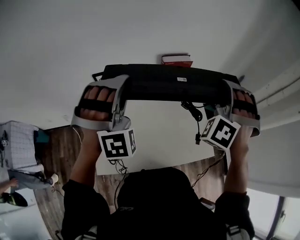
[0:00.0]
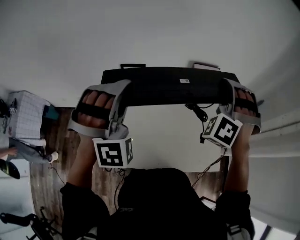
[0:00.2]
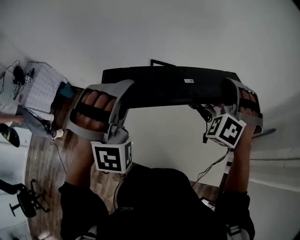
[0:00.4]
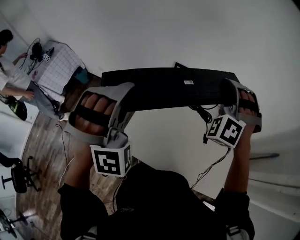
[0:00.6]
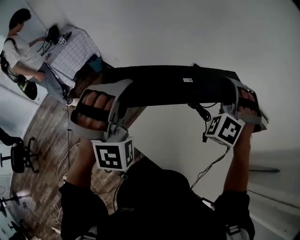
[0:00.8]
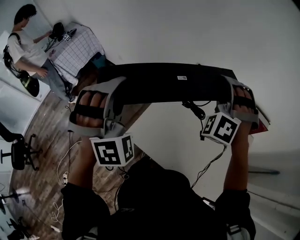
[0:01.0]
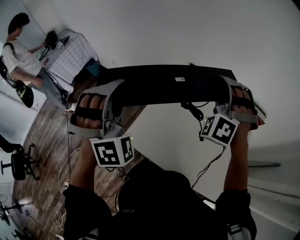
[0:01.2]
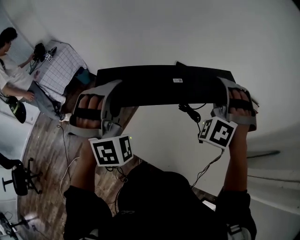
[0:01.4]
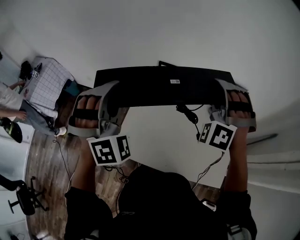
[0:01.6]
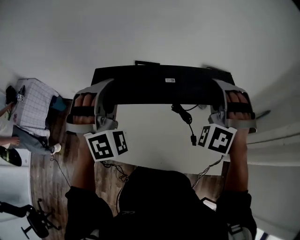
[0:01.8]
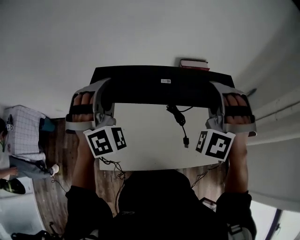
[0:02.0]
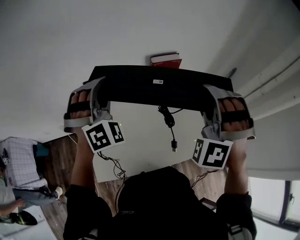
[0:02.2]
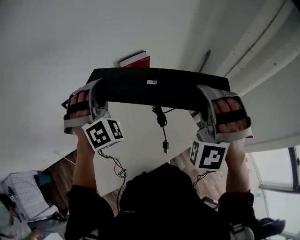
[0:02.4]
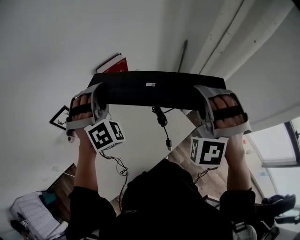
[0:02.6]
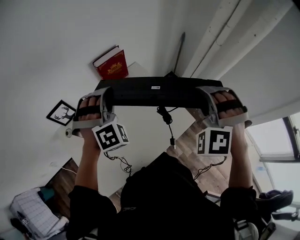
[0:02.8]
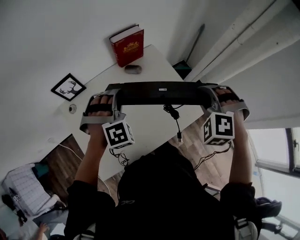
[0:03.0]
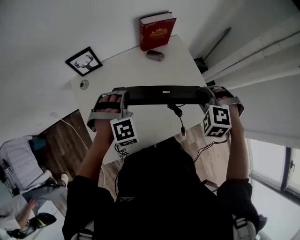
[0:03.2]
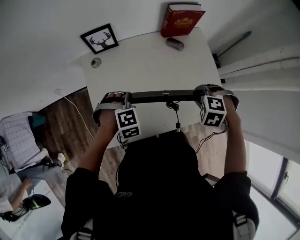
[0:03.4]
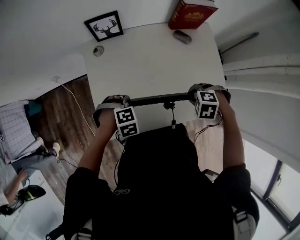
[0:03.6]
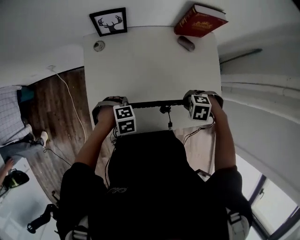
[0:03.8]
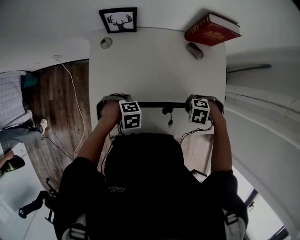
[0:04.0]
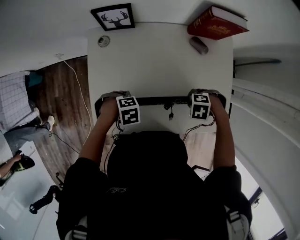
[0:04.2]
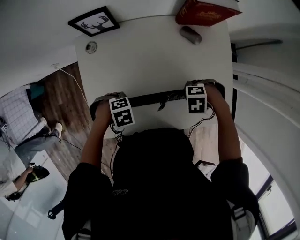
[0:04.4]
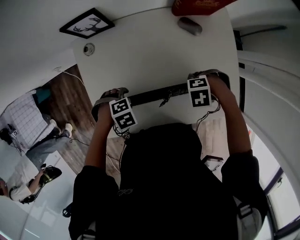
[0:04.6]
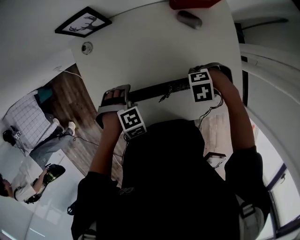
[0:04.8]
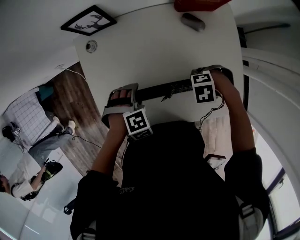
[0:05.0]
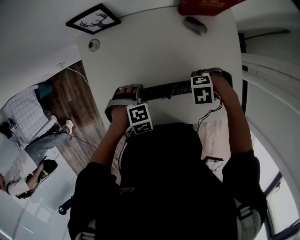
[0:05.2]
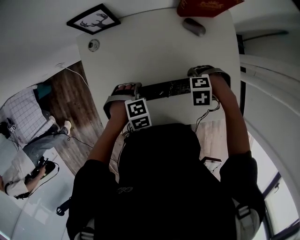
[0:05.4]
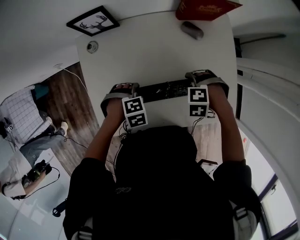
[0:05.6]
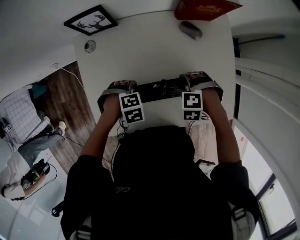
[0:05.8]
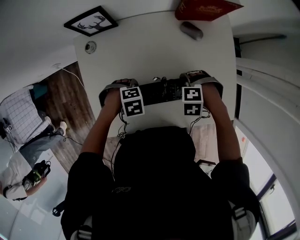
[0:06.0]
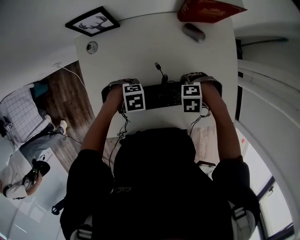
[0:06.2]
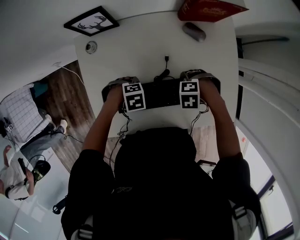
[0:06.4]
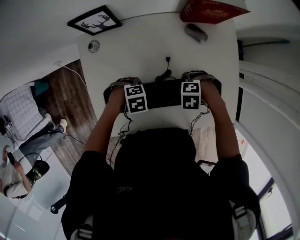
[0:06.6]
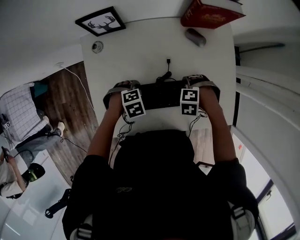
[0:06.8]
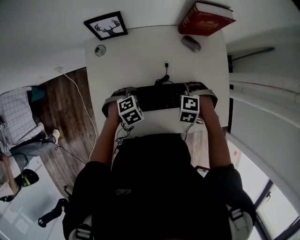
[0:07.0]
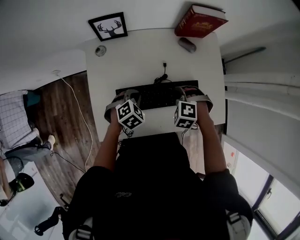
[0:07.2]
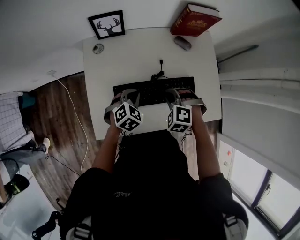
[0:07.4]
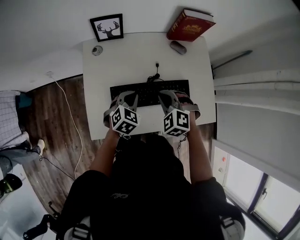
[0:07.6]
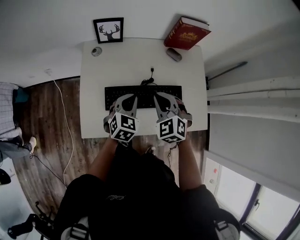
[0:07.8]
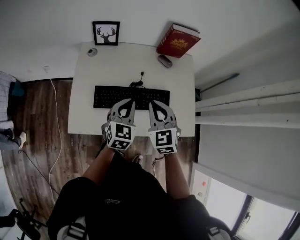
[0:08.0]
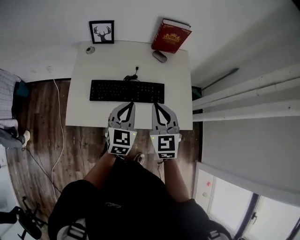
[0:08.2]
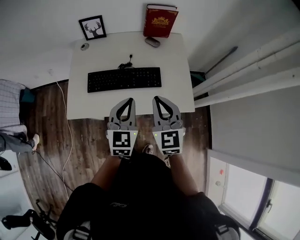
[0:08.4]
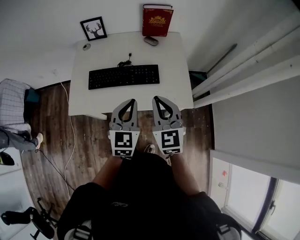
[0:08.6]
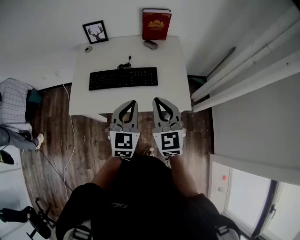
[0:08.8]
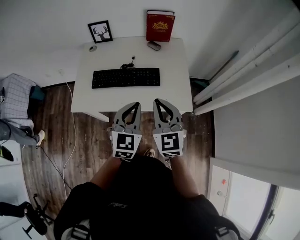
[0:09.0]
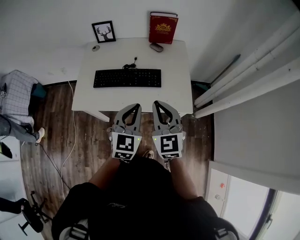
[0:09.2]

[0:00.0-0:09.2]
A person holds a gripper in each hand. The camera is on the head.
0:00.0 to 0:01.6: The left gripper changes place by about 25 cm, and swivels approximately 30 degrees. Meanwhile the right gripper ends up about 25 cm from where it was, and swivels some 40 degrees.
0:01.6 to 0:03.0: The left gripper ends up about 35 cm from where it was, and changes its angle by roughly 60 degrees. The right gripper changes place by roughly 35 cm, and tilts its fingers about 40 degrees downward.
0:03.0 to 0:04.6: Both grippers travel together downward, roughly 30 cm. The left gripper points its fingers roughly 40 degrees further downward, and opens its fingers; the right gripper changes its angle by roughly 70 degrees.
0:04.6 to 0:06.2: The left gripper changes place by about 5 cm. Meanwhile the right gripper opens up.
0:06.2 to 0:07.6: Both grippers travel together upward, about 15 cm. The right gripper rotates roughly 50 degrees, and closes, while the left gripper turns by approximately 70 degrees, and closes up.
0:07.6 to 0:09.2: Both grippers move backward, to the right and upward, roughly 35 cm. The right gripper tips its fingers upward by about 40 degrees. Meanwhile the left gripper changes its angle by approximately 30 degrees.

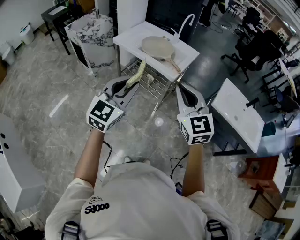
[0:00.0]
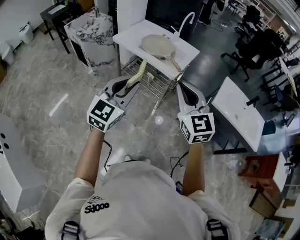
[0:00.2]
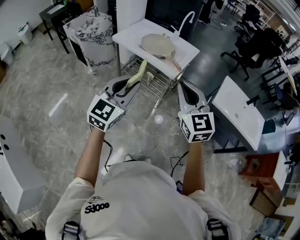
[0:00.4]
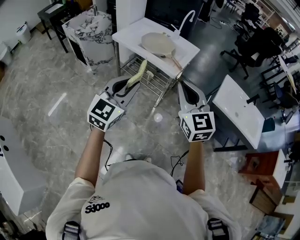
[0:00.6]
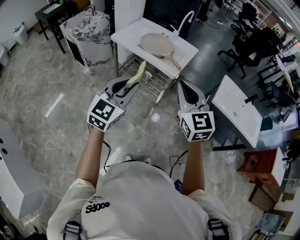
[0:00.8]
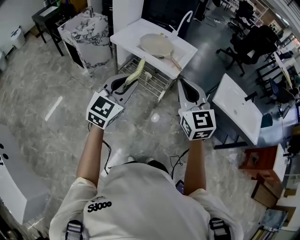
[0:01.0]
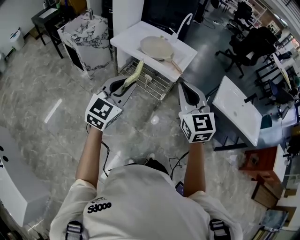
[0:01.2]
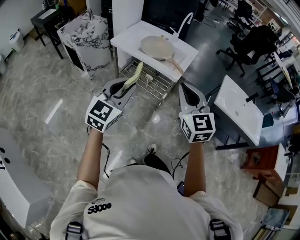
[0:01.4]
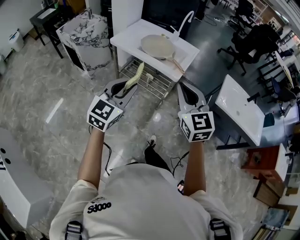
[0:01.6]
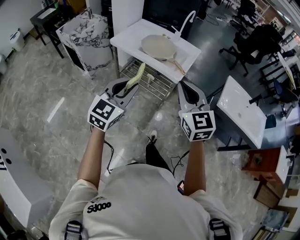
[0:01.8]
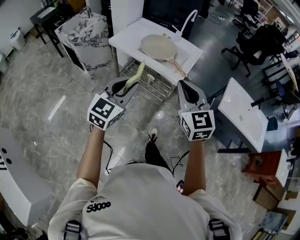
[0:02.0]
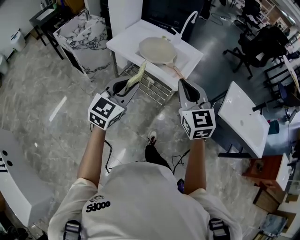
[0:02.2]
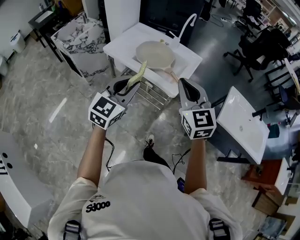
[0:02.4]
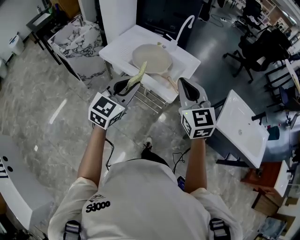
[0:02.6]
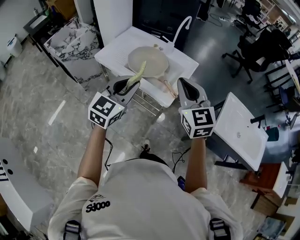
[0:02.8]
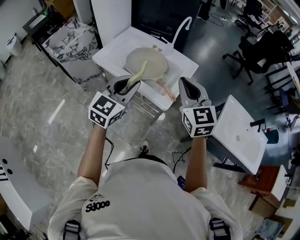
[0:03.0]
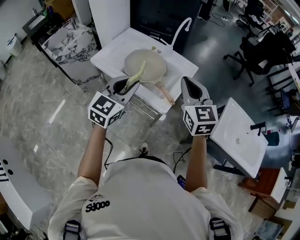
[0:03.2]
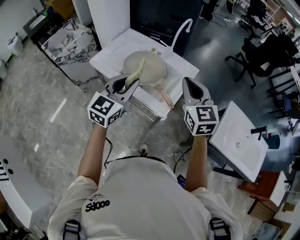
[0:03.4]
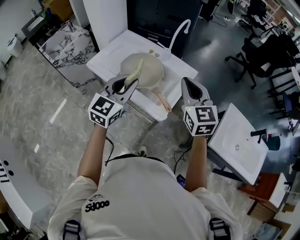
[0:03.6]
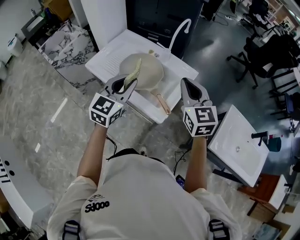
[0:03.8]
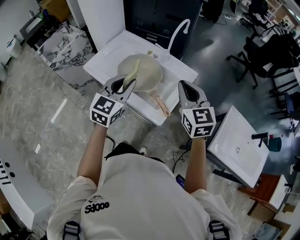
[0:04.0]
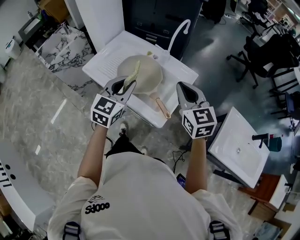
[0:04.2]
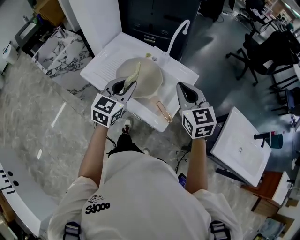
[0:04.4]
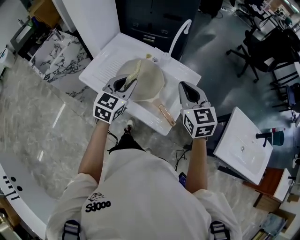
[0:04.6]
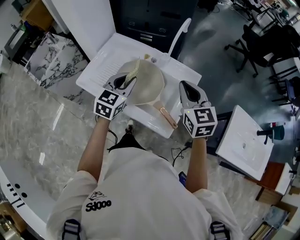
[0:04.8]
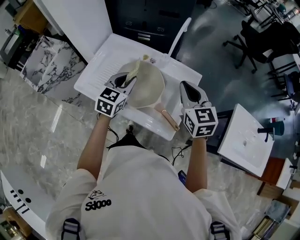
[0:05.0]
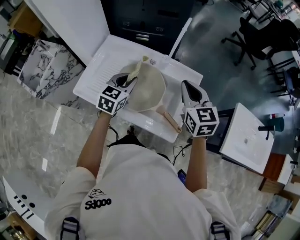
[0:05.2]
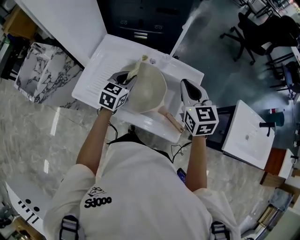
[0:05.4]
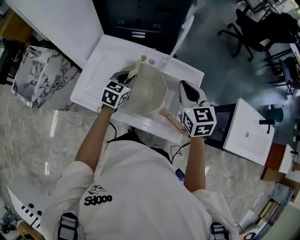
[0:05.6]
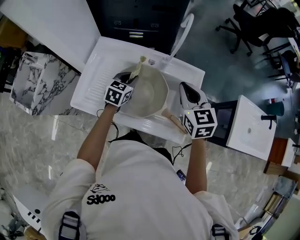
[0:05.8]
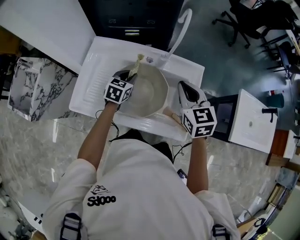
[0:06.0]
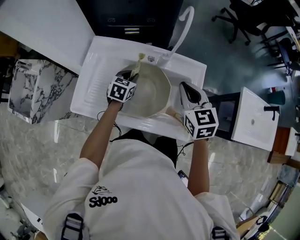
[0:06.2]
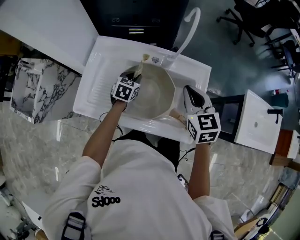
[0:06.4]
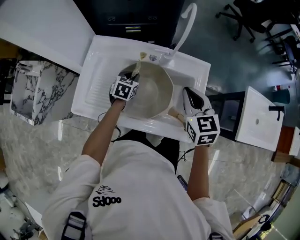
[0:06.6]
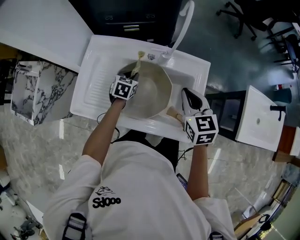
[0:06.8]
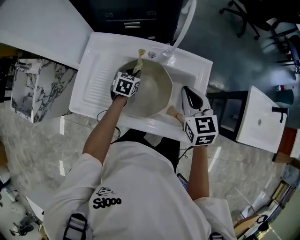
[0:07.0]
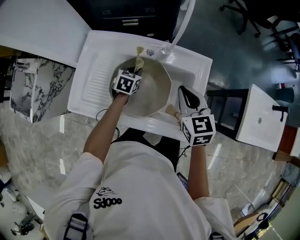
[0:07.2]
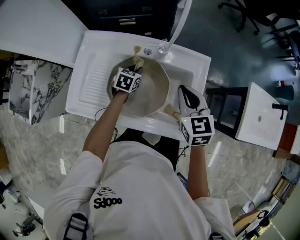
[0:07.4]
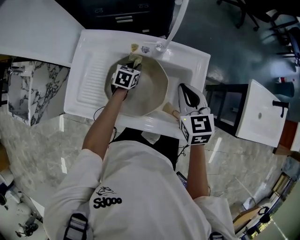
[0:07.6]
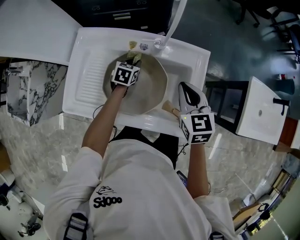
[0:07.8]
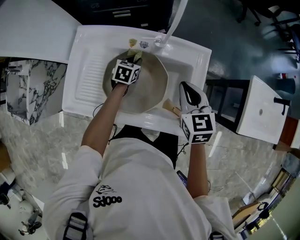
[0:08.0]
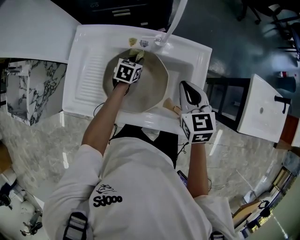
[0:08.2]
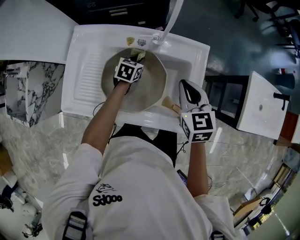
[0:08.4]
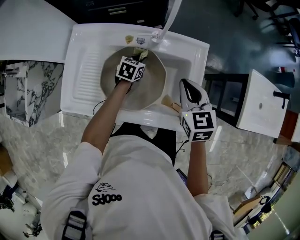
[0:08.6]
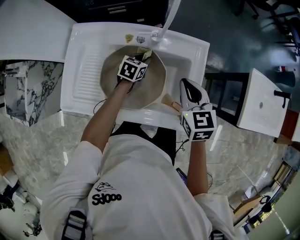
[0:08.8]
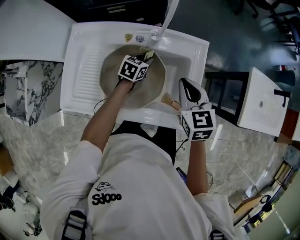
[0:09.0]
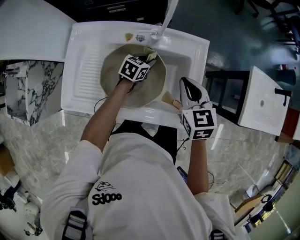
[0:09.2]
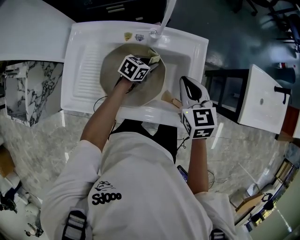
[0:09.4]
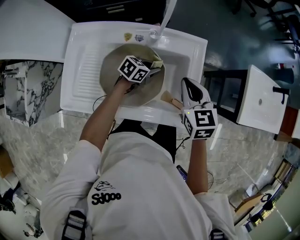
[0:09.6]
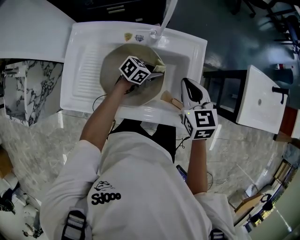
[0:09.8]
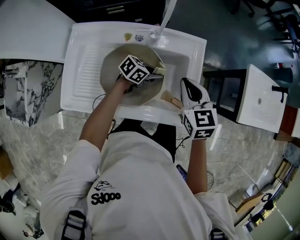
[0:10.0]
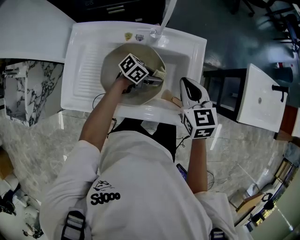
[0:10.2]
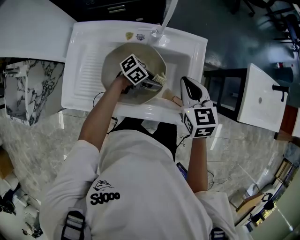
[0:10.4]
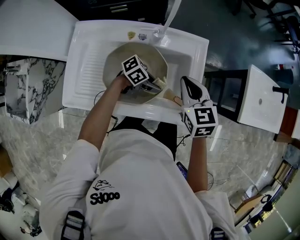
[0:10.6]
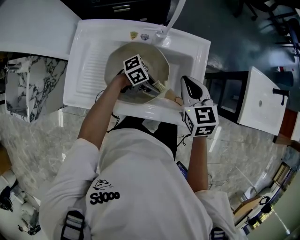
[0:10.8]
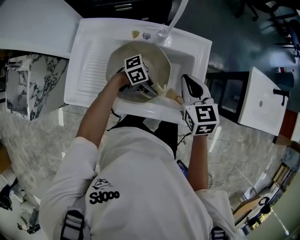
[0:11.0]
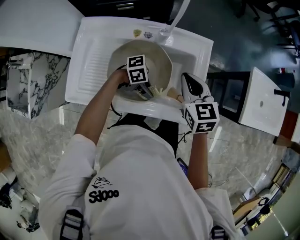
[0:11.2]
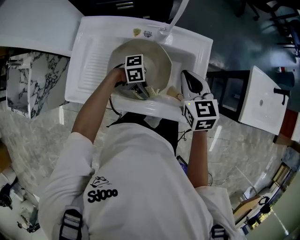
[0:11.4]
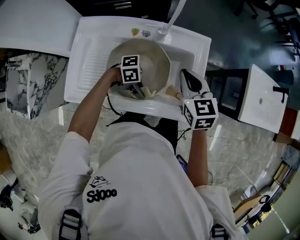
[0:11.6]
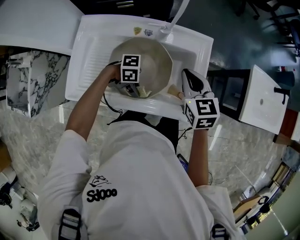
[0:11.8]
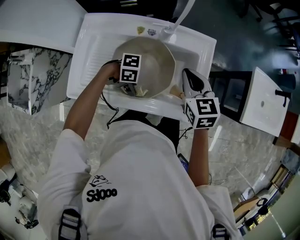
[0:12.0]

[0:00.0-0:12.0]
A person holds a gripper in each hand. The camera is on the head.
0:00.0 to 0:01.6: The left gripper moves to the left, approximately 5 cm; the right gripper shifts by about 5 cm.
0:01.6 to 0:03.0: Both grippers move forward, approximately 25 cm.
0:03.0 to 0:04.4: The grippers both shift forward and downward by some 15 cm.
0:04.4 to 0:06.0: The right gripper shifts approximately 15 cm forward, downward and to the left, and swivels roughly 20 degrees. The left gripper heads forward and downward, covering some 30 cm, and changes its angle by some 30 degrees.
0:06.0 to 0:07.6: The right gripper shifts about 5 cm downward. Meanwhile the left gripper goes approximately 10 cm downward.
0:07.6 to 0:09.0: The left gripper travels to the right by roughly 10 cm.
0:09.0 to 0:10.4: The left gripper ends up approximately 15 cm from where it was, and turns by some 50 degrees.
0:10.4 to 0:12.0: The left gripper changes place by approximately 15 cm, and rotates about 40 degrees.

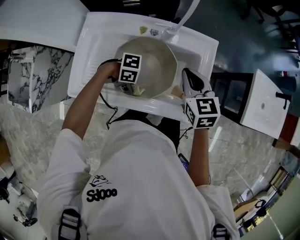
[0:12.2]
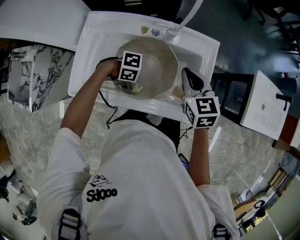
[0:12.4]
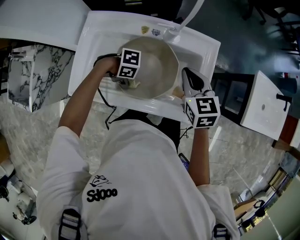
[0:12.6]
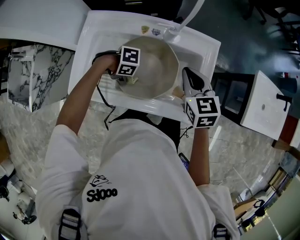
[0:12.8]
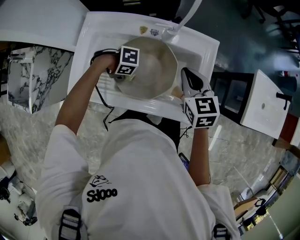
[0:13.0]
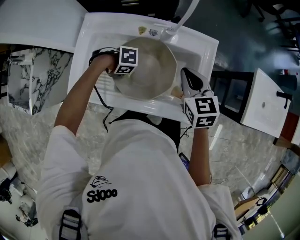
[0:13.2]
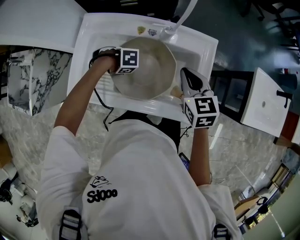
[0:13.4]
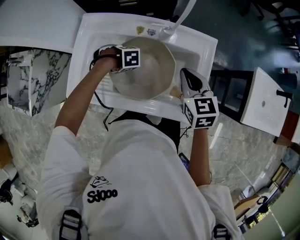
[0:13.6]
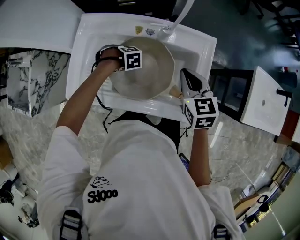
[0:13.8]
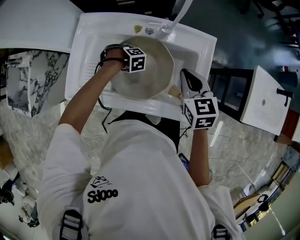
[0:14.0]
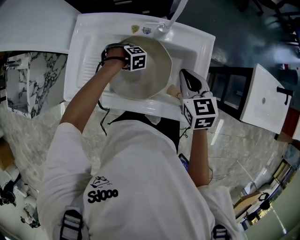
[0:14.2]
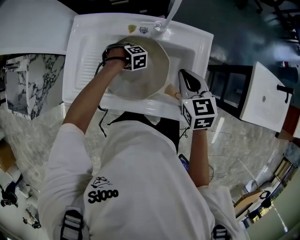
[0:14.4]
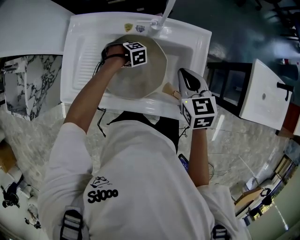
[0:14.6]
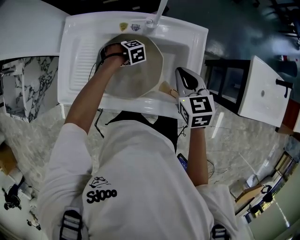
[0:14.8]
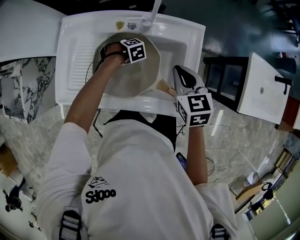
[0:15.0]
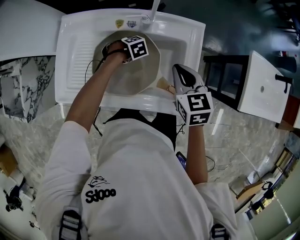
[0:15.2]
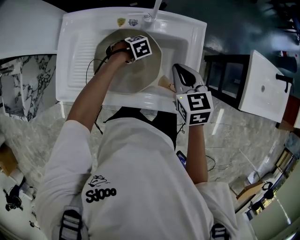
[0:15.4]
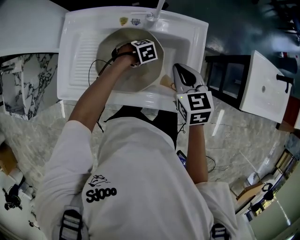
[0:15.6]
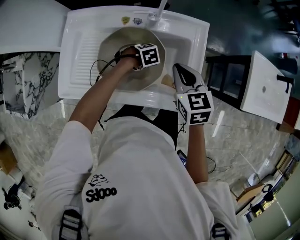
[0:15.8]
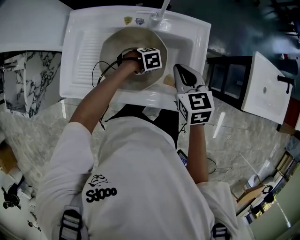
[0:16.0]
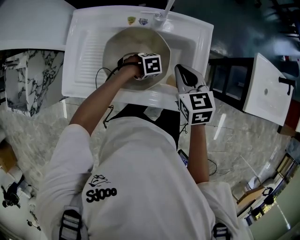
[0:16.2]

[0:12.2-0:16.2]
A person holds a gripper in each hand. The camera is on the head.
0:12.2 to 0:13.6: The left gripper ends up some 15 cm from where it was, and tips its fingers downward by approximately 40 degrees.
0:13.6 to 0:14.8: The left gripper moves some 10 cm.
0:14.8 to 0:16.2: The left gripper shifts by some 15 cm, and changes its angle by about 20 degrees.
